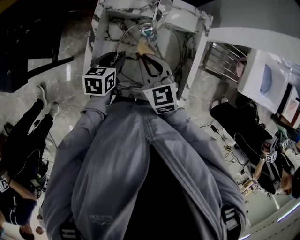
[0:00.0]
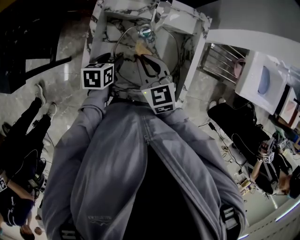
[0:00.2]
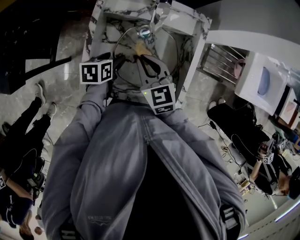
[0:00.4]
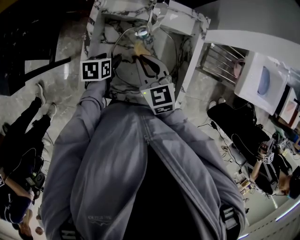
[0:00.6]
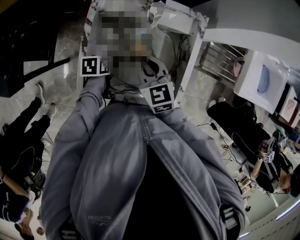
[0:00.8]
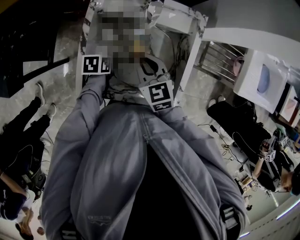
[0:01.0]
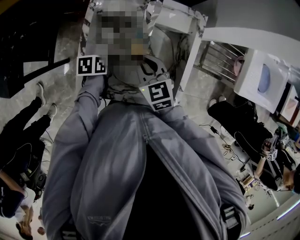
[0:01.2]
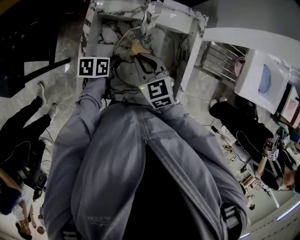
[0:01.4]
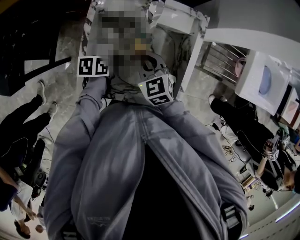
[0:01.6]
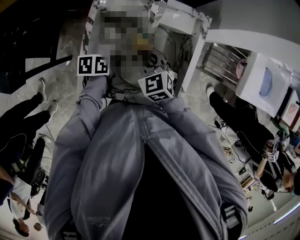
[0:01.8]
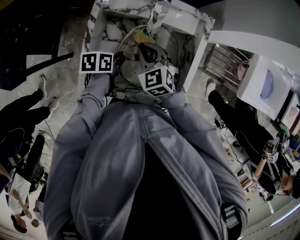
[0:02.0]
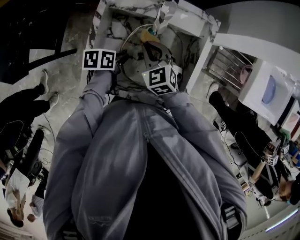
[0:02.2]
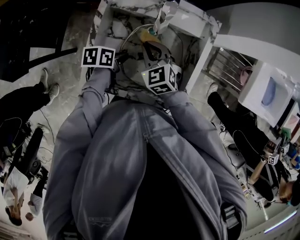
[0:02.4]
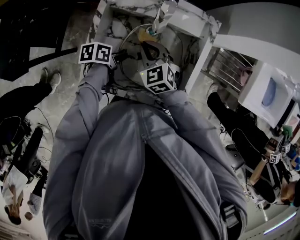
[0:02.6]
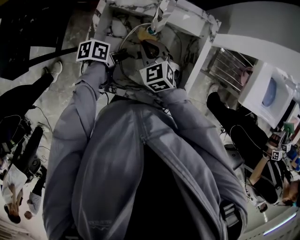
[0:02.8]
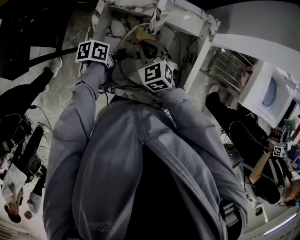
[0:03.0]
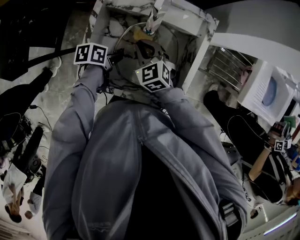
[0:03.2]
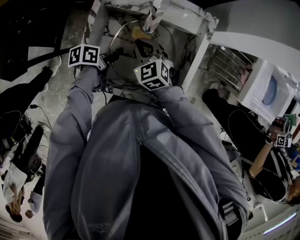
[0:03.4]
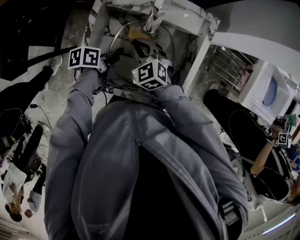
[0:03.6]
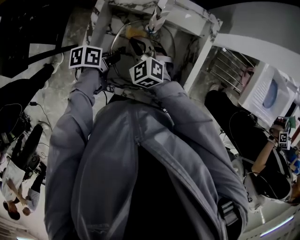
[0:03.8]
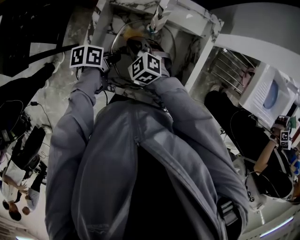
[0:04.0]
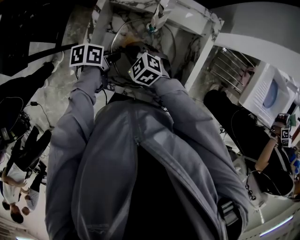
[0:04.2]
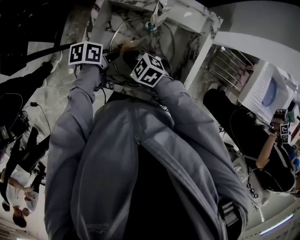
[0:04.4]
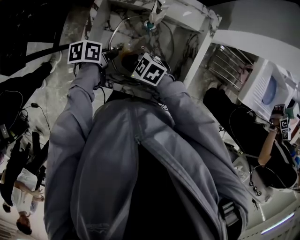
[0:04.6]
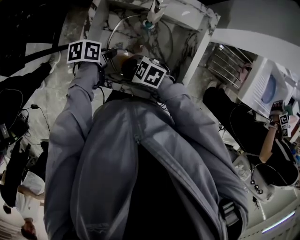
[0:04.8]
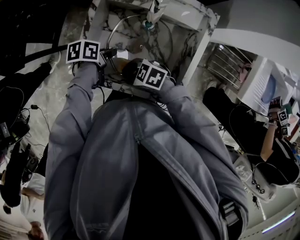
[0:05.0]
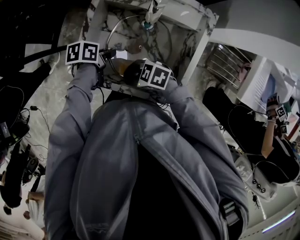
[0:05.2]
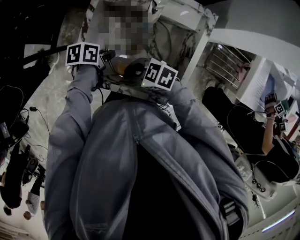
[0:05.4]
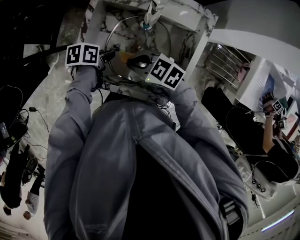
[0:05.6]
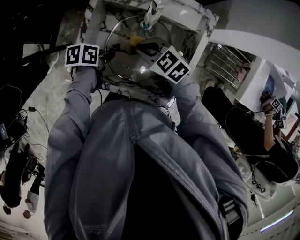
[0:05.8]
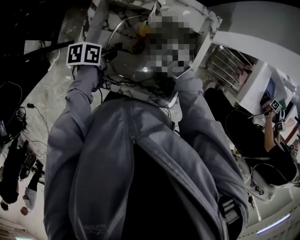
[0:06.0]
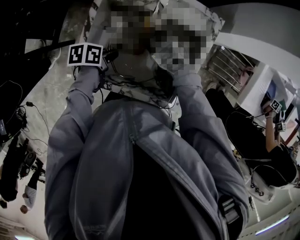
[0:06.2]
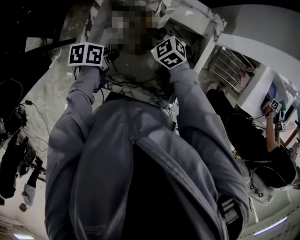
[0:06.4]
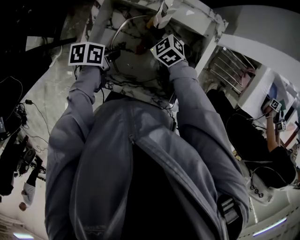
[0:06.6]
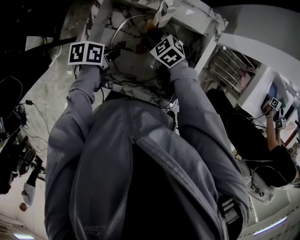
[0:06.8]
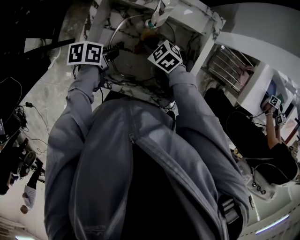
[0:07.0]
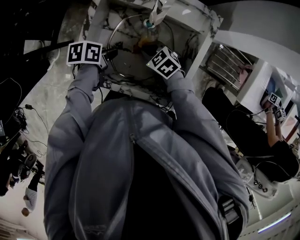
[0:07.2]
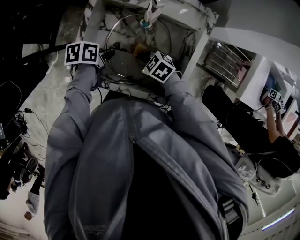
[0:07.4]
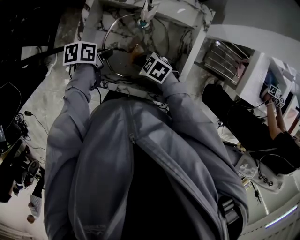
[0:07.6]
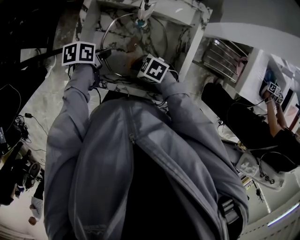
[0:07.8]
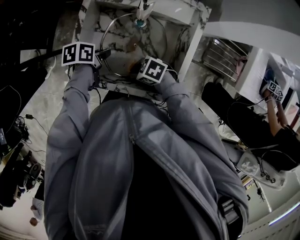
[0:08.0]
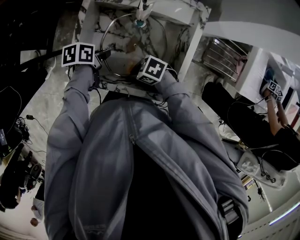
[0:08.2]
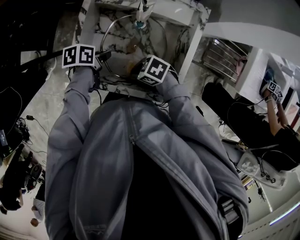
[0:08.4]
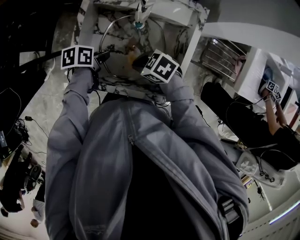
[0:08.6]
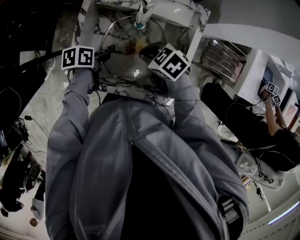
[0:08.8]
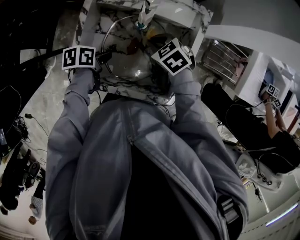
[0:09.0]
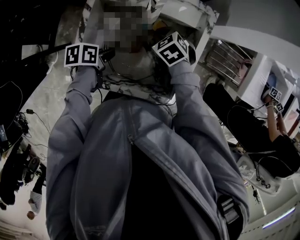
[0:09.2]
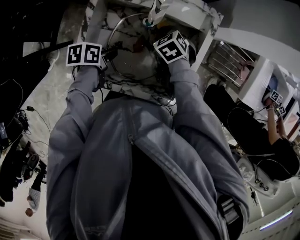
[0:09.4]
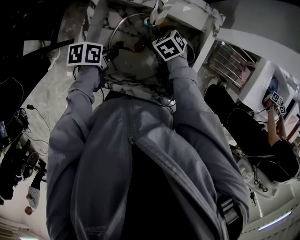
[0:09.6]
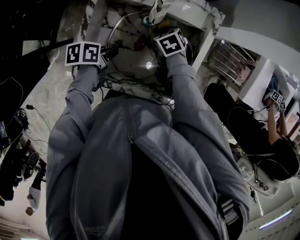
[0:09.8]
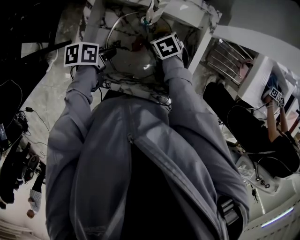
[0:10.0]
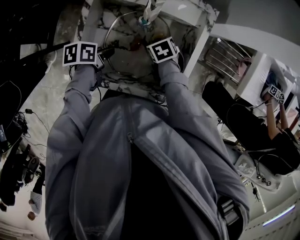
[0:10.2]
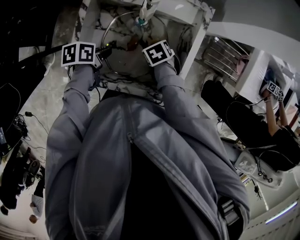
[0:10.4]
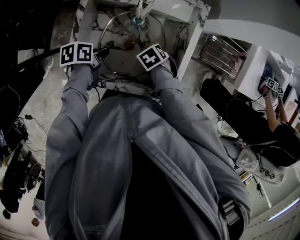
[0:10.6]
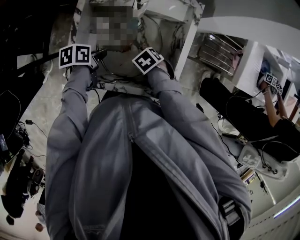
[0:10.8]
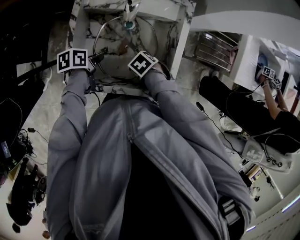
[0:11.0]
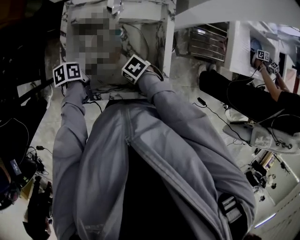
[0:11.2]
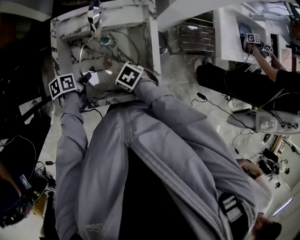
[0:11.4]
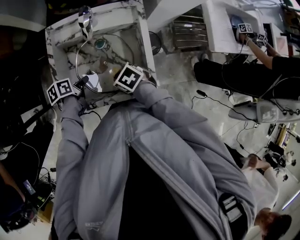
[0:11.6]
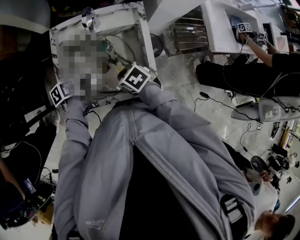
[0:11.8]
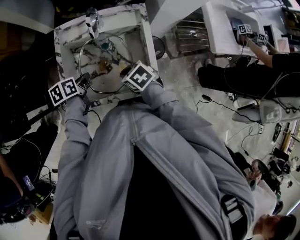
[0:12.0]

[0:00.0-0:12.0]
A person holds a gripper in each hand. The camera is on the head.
0:00.0 to 0:01.6: The right gripper shifts by approximately 5 cm, while the left gripper is displaced downward by roughly 5 cm, changes its angle by approximately 30 degrees, and closes up.
0:01.6 to 0:03.0: The grippers move only a little.
0:03.0 to 0:04.4: The right gripper moves approximately 10 cm, and turns by roughly 30 degrees.
0:04.4 to 0:06.0: The right gripper changes place by approximately 10 cm.
0:06.0 to 0:07.6: The right gripper ends up some 15 cm from where it was, and swivels roughly 30 degrees.
0:07.6 to 0:09.0: The right gripper moves approximately 15 cm, and turns by about 20 degrees.
0:09.0 to 0:10.4: The right gripper travels downward by roughly 10 cm, and rotates some 30 degrees.
0:10.4 to 0:12.0: The left gripper goes roughly 10 cm upward. The right gripper moves upward, about 15 cm, and turns by about 20 degrees.

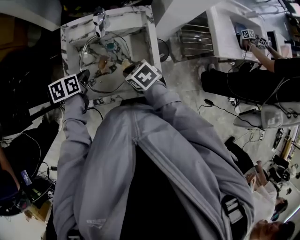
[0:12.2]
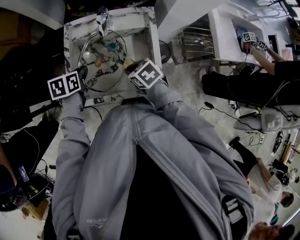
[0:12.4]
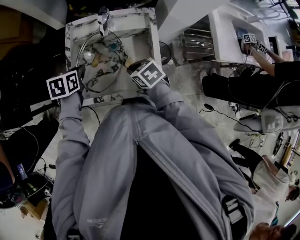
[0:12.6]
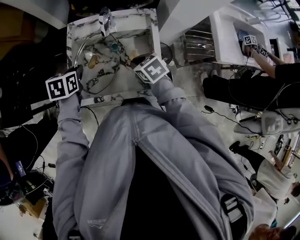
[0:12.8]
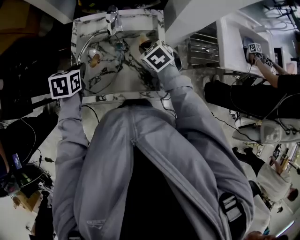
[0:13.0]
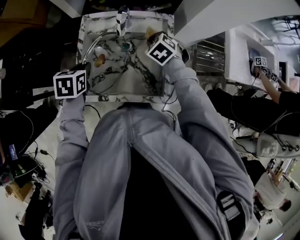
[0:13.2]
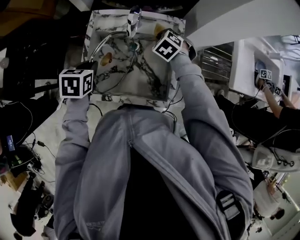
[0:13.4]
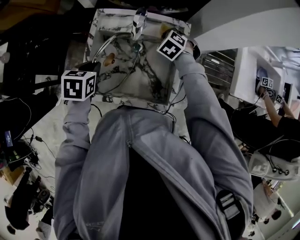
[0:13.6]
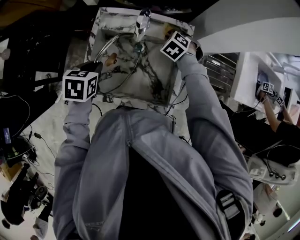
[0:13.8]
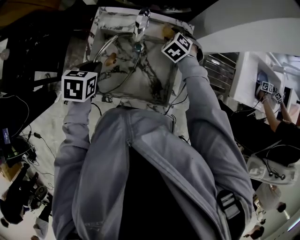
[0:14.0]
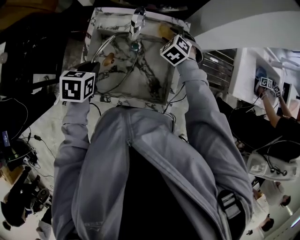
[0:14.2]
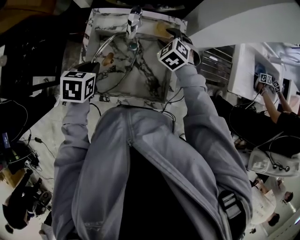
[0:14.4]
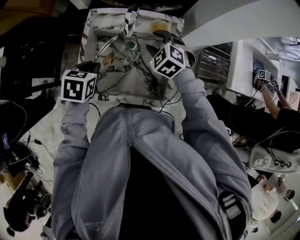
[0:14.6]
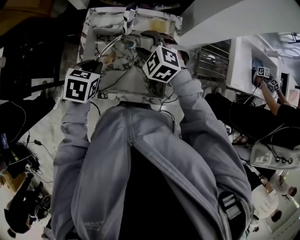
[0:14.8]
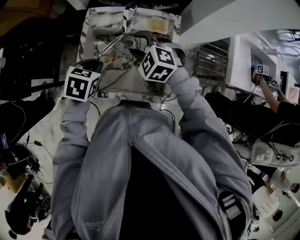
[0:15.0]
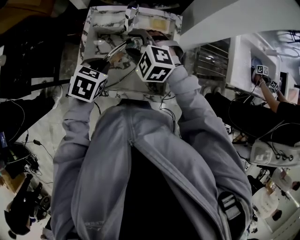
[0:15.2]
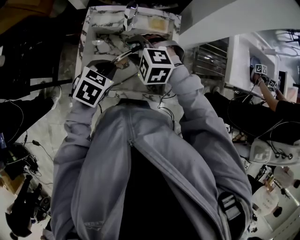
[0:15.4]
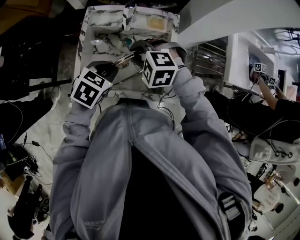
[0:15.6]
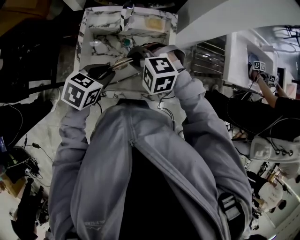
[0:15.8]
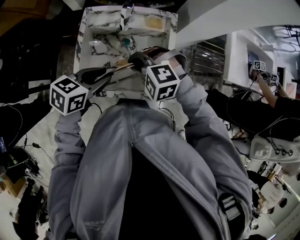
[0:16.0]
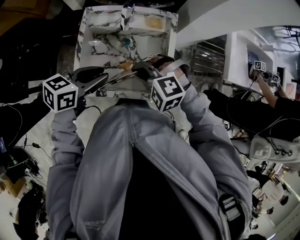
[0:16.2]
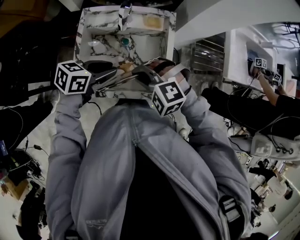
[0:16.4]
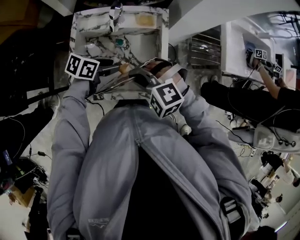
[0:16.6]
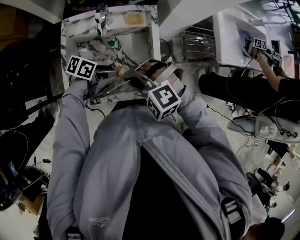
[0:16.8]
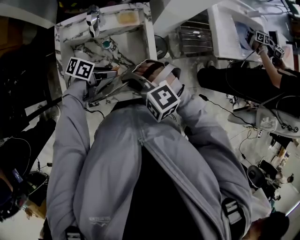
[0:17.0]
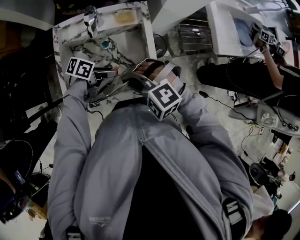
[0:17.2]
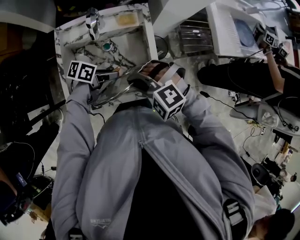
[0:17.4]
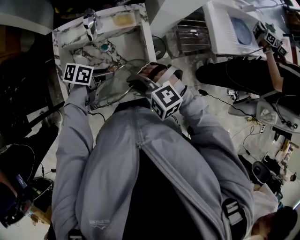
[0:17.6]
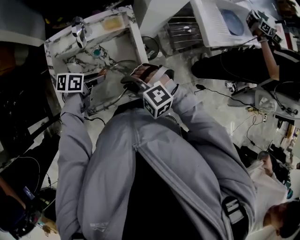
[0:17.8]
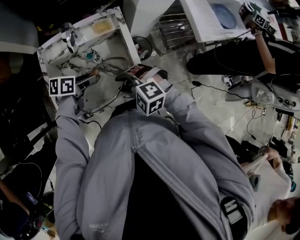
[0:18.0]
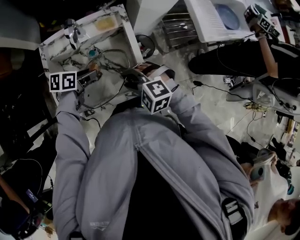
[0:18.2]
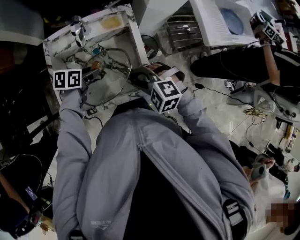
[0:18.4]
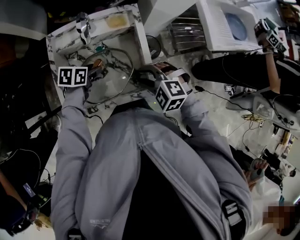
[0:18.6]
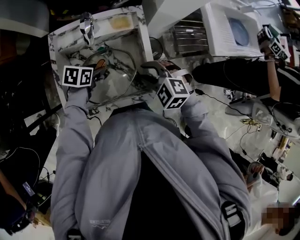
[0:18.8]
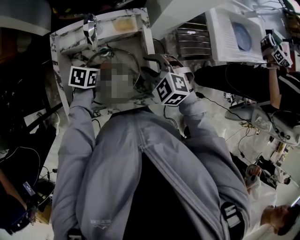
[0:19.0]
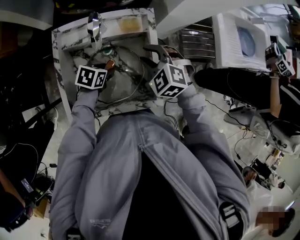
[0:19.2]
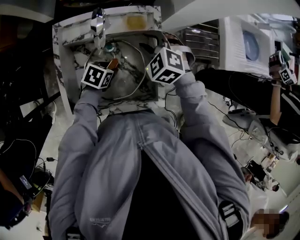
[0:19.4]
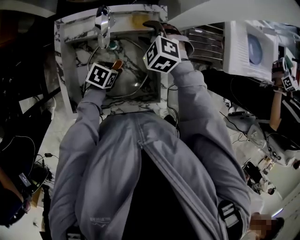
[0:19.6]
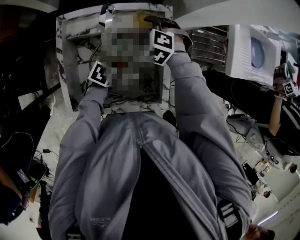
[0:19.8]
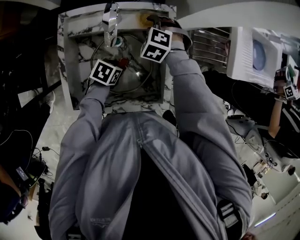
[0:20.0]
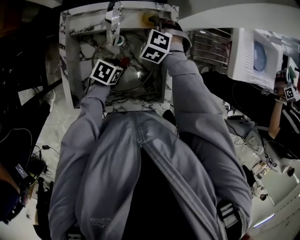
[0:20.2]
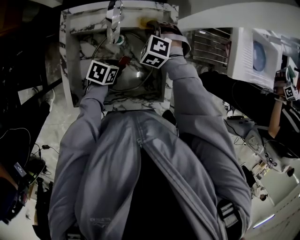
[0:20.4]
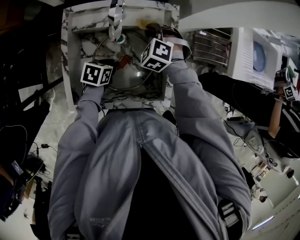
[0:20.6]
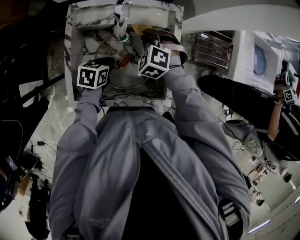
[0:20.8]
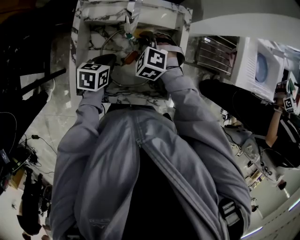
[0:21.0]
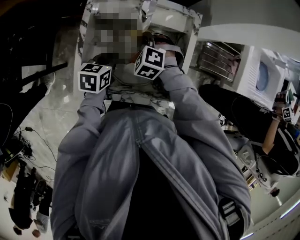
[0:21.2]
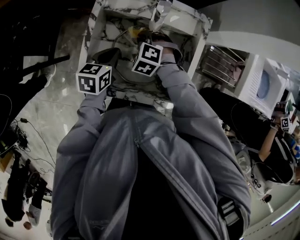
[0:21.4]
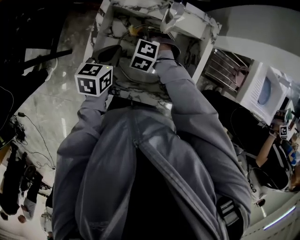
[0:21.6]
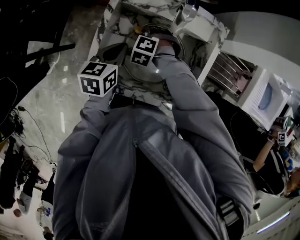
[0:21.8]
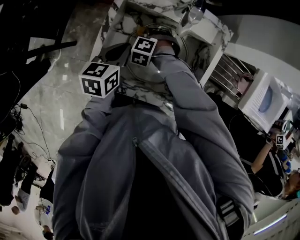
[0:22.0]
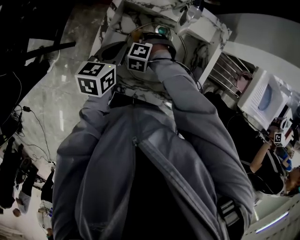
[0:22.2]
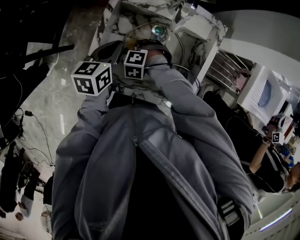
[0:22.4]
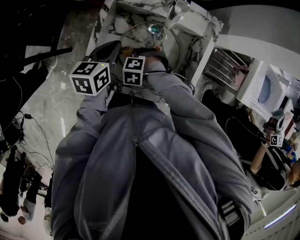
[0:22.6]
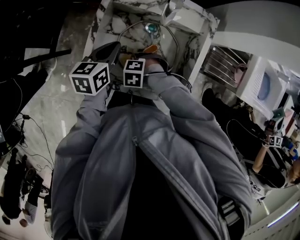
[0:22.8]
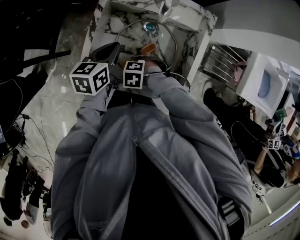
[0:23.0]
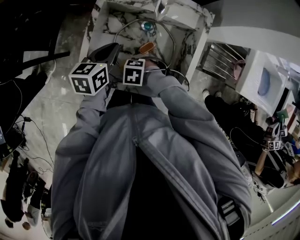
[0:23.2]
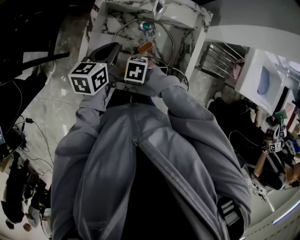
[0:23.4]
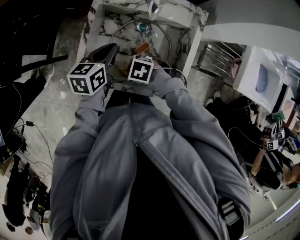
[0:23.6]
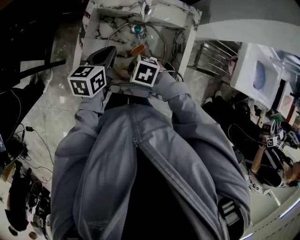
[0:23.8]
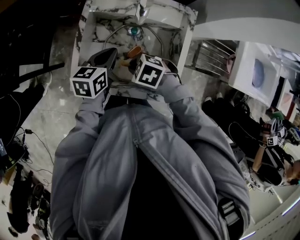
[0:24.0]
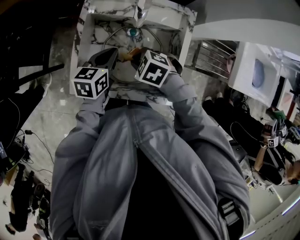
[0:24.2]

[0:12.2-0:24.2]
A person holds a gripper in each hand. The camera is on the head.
0:12.2 to 0:13.8: The left gripper goes some 5 cm upward, and rotates approximately 20 degrees, while the right gripper shifts approximately 25 cm forward and to the right, and changes its angle by approximately 50 degrees.
0:13.8 to 0:15.2: The right gripper shifts about 20 cm backward, upward and to the left, turns by about 30 degrees, and opens its fingers. Meanwhile the left gripper moves to the right, about 5 cm.
0:15.2 to 0:16.6: The right gripper ends up about 15 cm from where it was, and closes its fingers, while the left gripper goes some 5 cm downward, rotates some 40 degrees, and opens up.
0:16.6 to 0:18.2: The right gripper shifts by roughly 10 cm, turns by about 20 degrees, and opens.
0:18.2 to 0:19.8: The right gripper changes place by about 30 cm. Meanwhile the left gripper shifts some 10 cm downward.
0:19.8 to 0:21.2: The left gripper moves some 15 cm, changes its angle by some 40 degrees, and closes. Meanwhile the right gripper changes place by approximately 15 cm, and closes up.
0:21.2 to 0:22.6: The left gripper ends up some 10 cm from where it was, while the right gripper moves about 20 cm, and rotates roughly 30 degrees.
0:22.6 to 0:24.2: The left gripper moves approximately 5 cm, while the right gripper goes some 10 cm upward, and swivels about 30 degrees.
